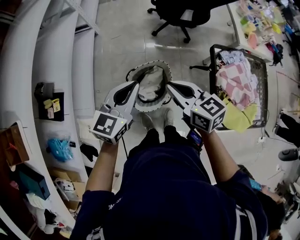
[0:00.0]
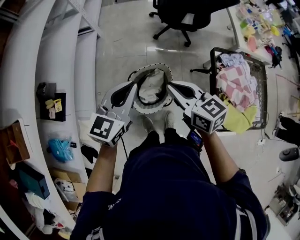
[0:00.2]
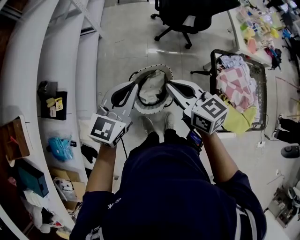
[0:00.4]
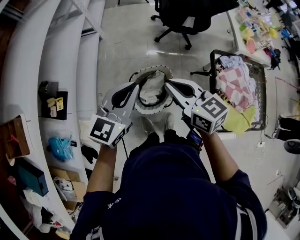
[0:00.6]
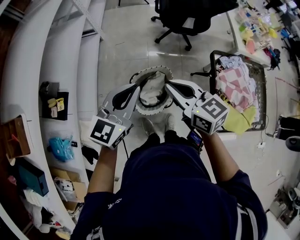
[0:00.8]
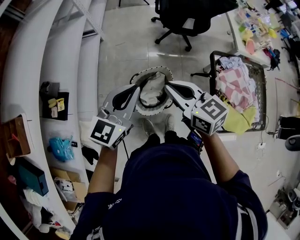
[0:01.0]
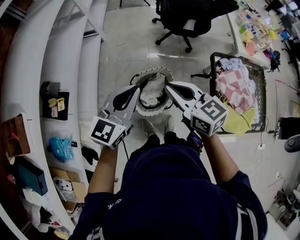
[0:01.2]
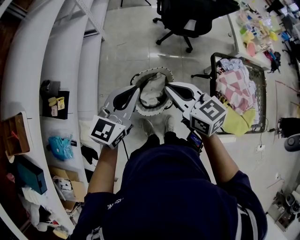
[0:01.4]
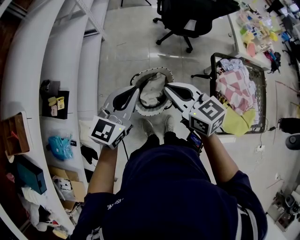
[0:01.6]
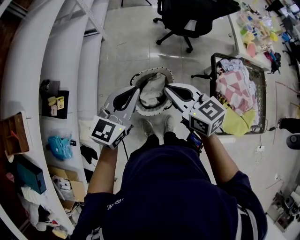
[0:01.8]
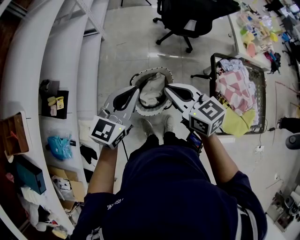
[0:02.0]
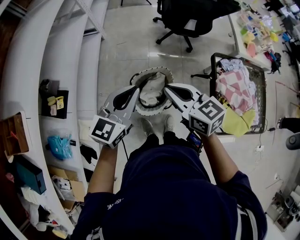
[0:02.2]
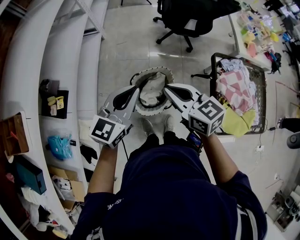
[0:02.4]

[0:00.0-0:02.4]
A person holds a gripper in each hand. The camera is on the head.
0:00.0 to 0:01.2: Both grippers travel together upward, approximately 5 cm.
0:01.2 to 0:02.4: There are only small adjustments of the grippers.

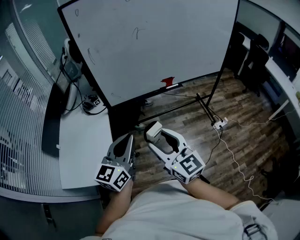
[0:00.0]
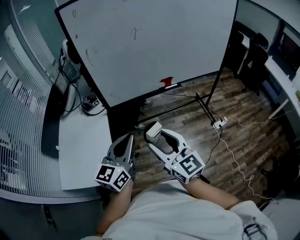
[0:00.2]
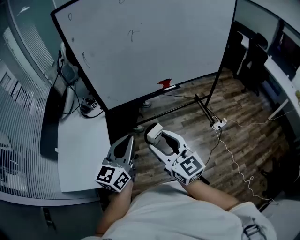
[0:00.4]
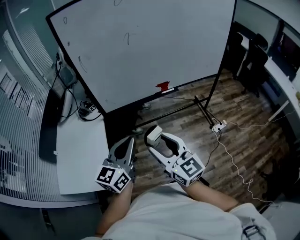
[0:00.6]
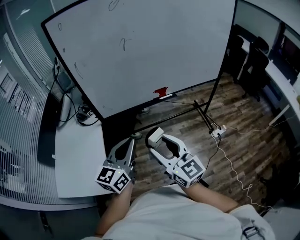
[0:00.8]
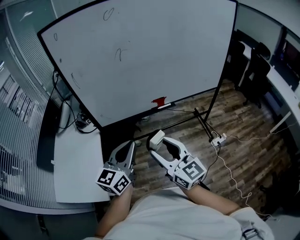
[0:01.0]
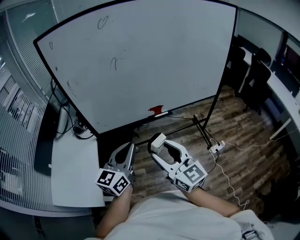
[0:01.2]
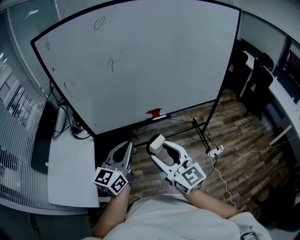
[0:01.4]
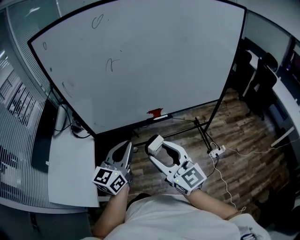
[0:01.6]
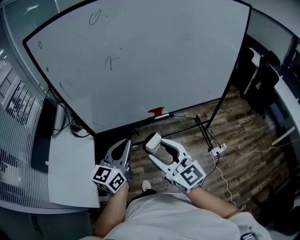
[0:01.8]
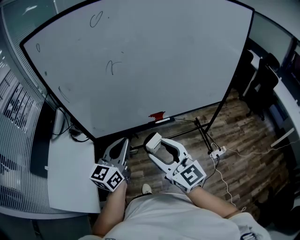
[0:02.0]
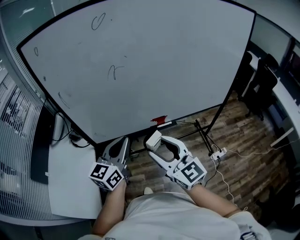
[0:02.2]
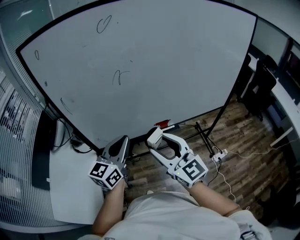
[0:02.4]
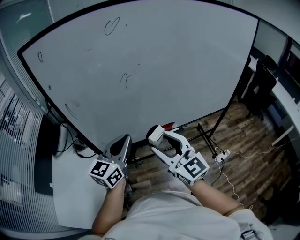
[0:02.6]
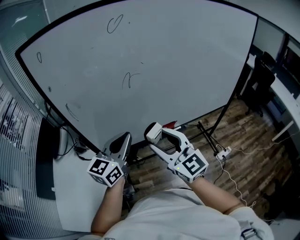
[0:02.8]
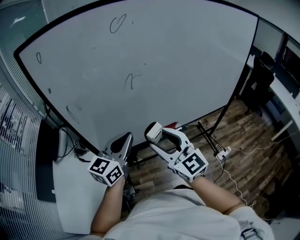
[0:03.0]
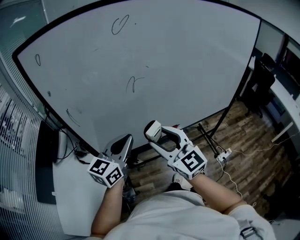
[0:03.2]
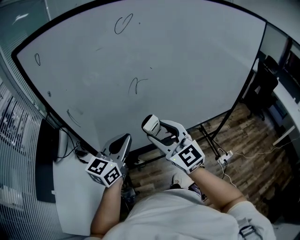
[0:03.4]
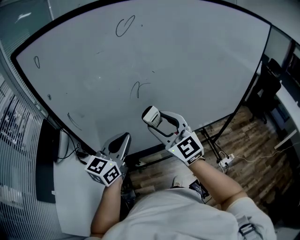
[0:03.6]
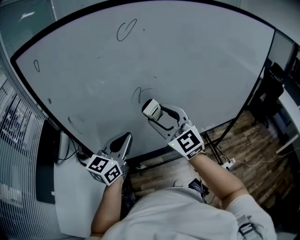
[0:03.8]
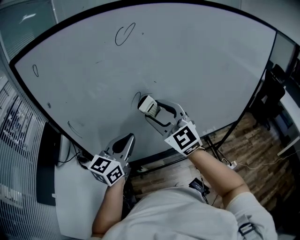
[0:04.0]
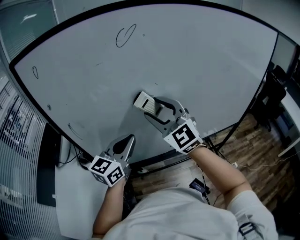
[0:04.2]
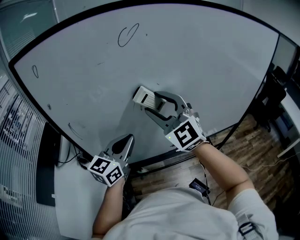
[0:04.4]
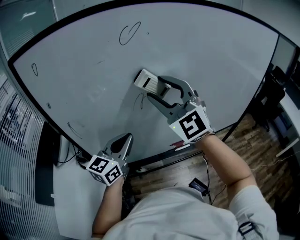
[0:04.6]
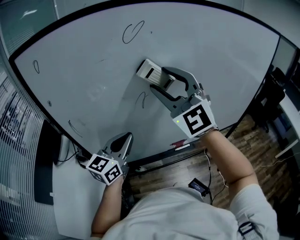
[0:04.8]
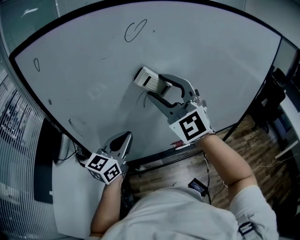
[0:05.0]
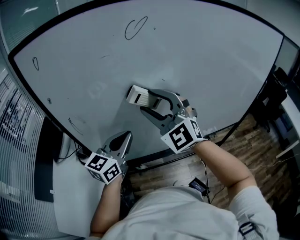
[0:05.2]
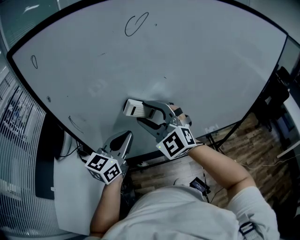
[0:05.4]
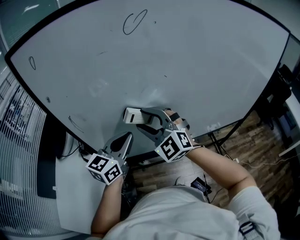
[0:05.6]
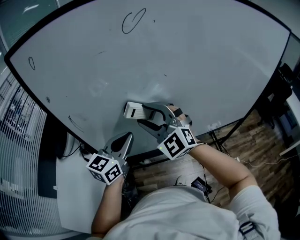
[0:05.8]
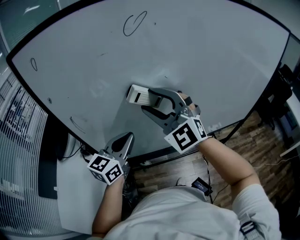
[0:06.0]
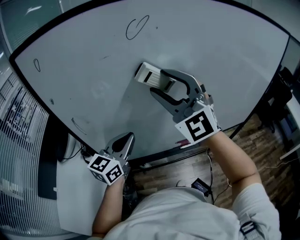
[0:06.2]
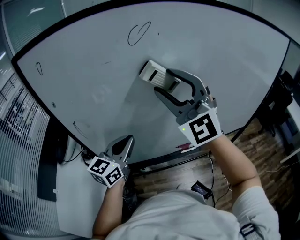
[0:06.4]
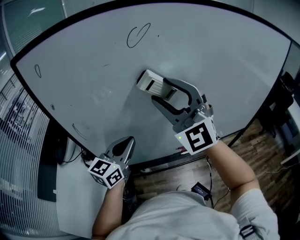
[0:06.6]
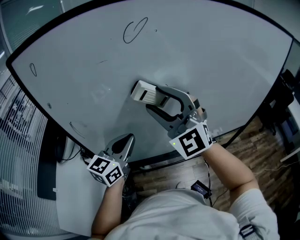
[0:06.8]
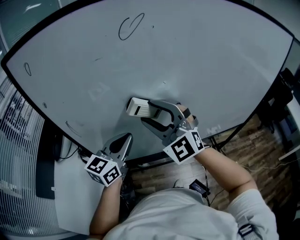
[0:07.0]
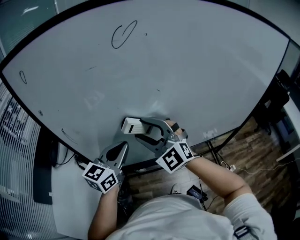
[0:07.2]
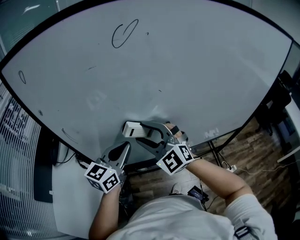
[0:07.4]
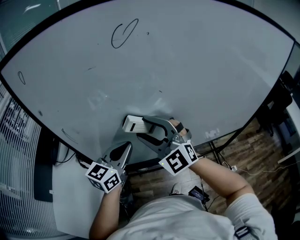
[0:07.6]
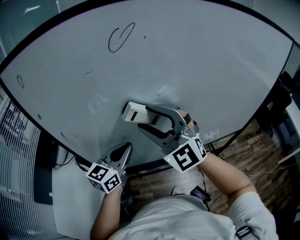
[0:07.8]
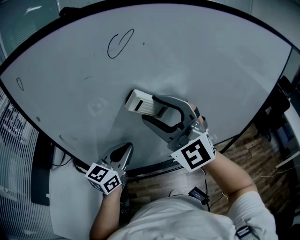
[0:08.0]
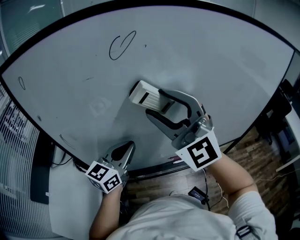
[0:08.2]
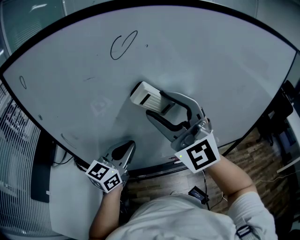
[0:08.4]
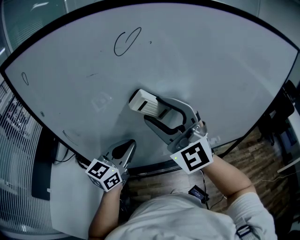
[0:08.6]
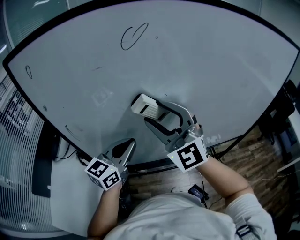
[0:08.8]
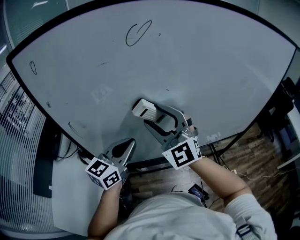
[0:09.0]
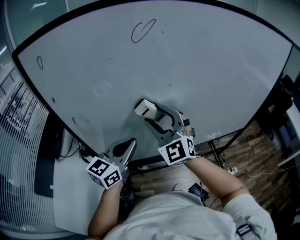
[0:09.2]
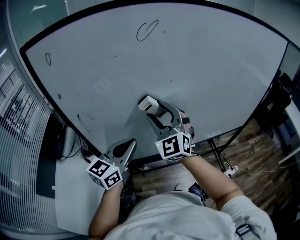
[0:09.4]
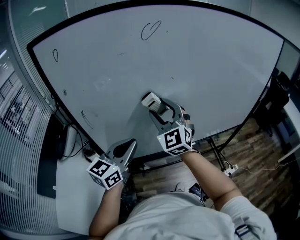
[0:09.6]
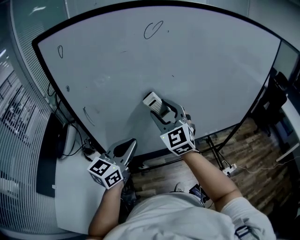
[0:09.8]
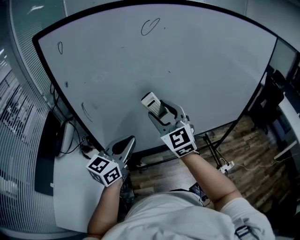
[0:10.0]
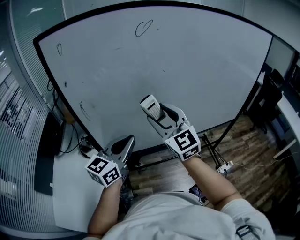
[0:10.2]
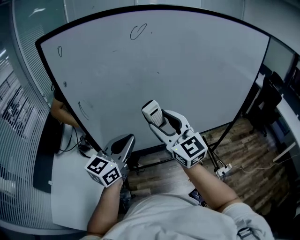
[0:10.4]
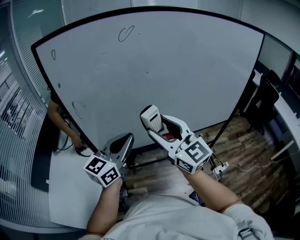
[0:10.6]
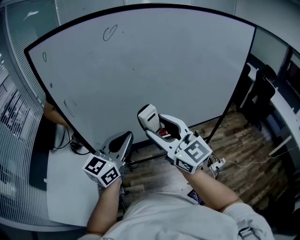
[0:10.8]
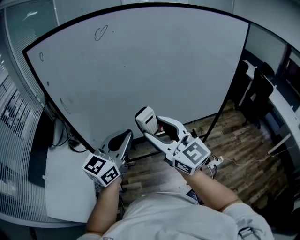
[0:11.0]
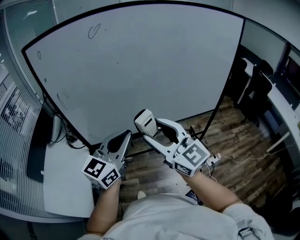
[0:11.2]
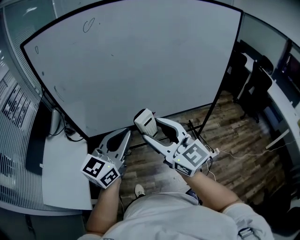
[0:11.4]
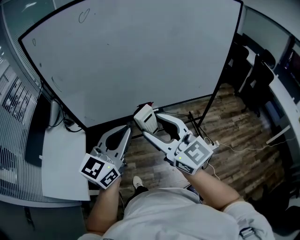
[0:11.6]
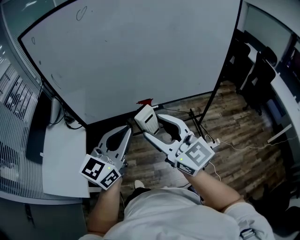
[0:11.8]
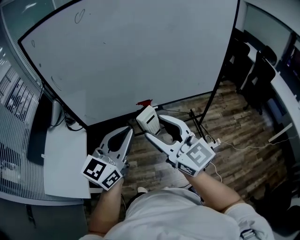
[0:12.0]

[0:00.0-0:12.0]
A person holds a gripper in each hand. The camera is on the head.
0:00.0 to 0:01.6: The grippers both shift to the right and forward by approximately 25 cm.
0:01.6 to 0:03.0: The two grippers go approximately 20 cm forward and to the left.
0:03.0 to 0:04.4: The left gripper shifts about 10 cm forward. Meanwhile the right gripper moves forward and upward, about 20 cm, and turns by roughly 30 degrees.
0:04.4 to 0:06.0: The right gripper goes up and down, roughly 20 cm each way, reversing 2 times.
0:06.0 to 0:07.6: The right gripper moves downward, some 5 cm.
0:07.6 to 0:09.0: The right gripper goes upward and returns, about 15 cm each way.
0:09.0 to 0:10.4: Both grippers travel together backward, about 15 cm. The right gripper turns by roughly 30 degrees.
0:10.4 to 0:12.0: The right gripper heads backward and to the right, covering roughly 30 cm. The left gripper is displaced to the right and backward by roughly 30 cm.

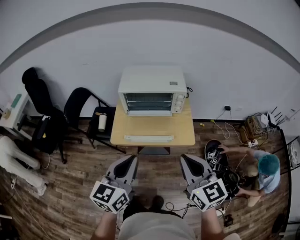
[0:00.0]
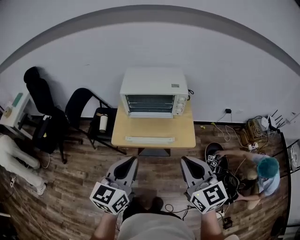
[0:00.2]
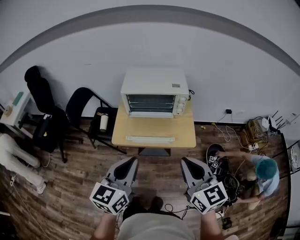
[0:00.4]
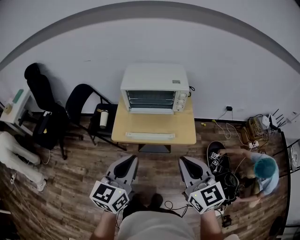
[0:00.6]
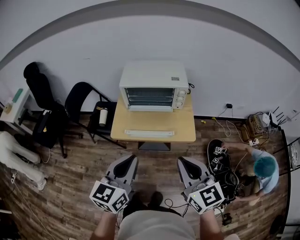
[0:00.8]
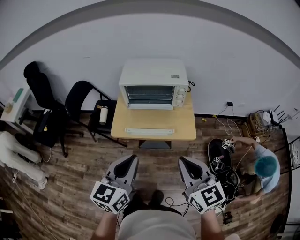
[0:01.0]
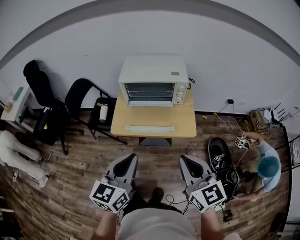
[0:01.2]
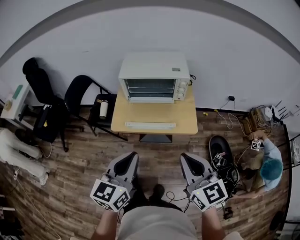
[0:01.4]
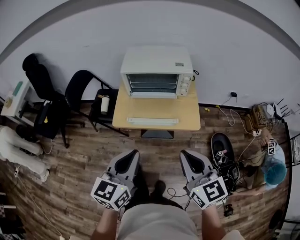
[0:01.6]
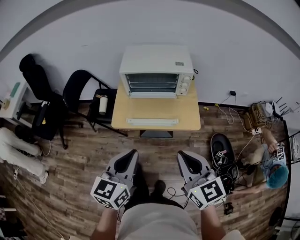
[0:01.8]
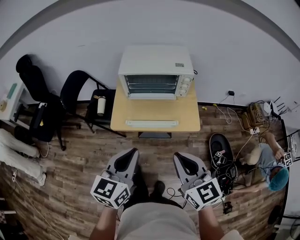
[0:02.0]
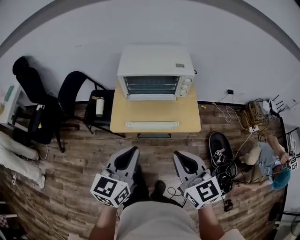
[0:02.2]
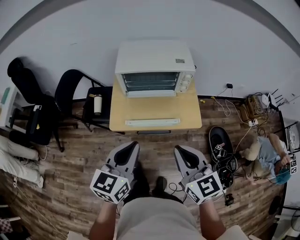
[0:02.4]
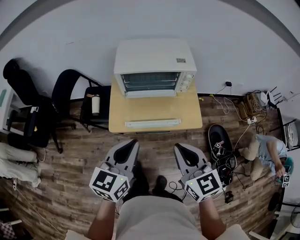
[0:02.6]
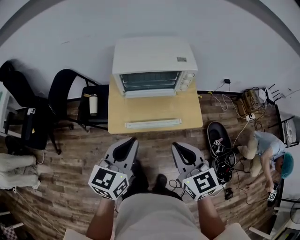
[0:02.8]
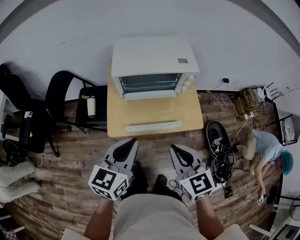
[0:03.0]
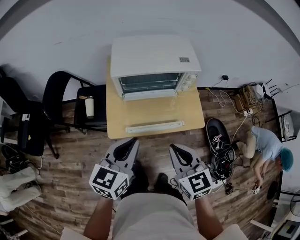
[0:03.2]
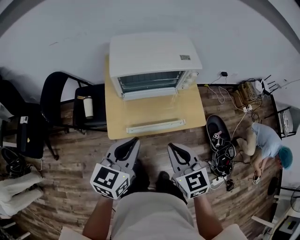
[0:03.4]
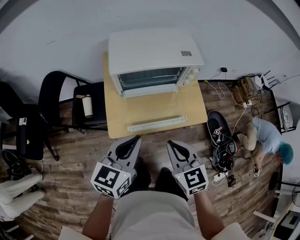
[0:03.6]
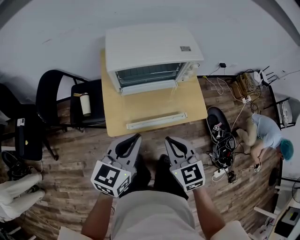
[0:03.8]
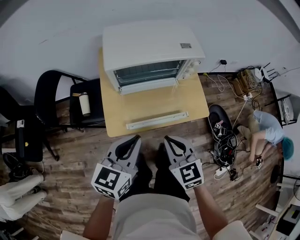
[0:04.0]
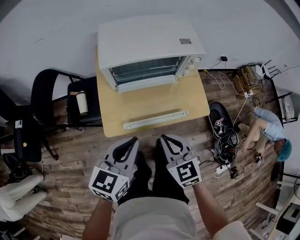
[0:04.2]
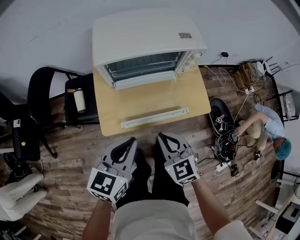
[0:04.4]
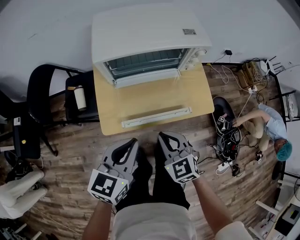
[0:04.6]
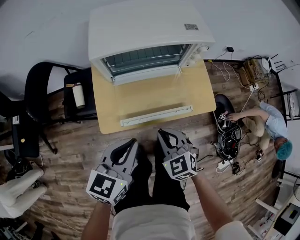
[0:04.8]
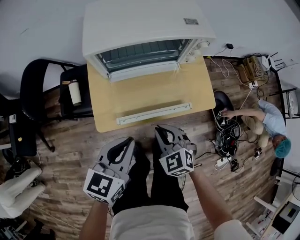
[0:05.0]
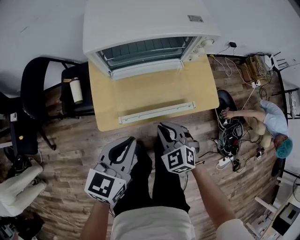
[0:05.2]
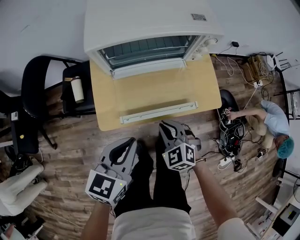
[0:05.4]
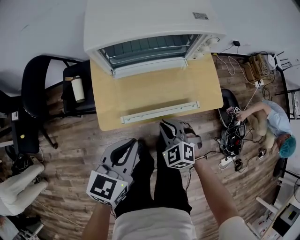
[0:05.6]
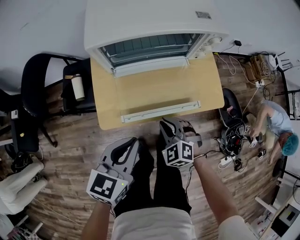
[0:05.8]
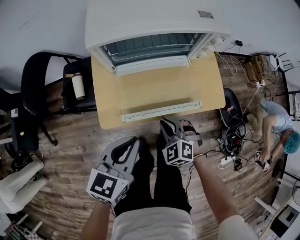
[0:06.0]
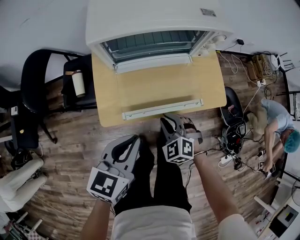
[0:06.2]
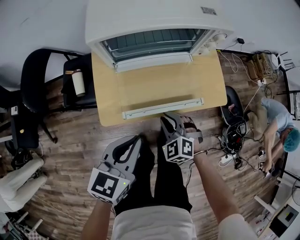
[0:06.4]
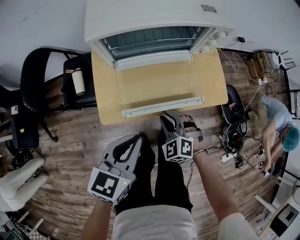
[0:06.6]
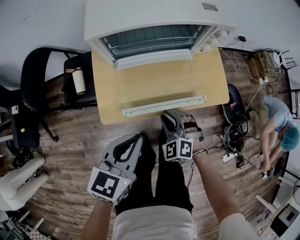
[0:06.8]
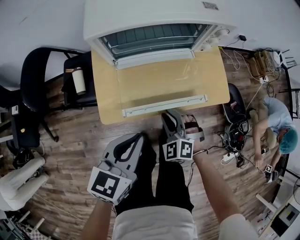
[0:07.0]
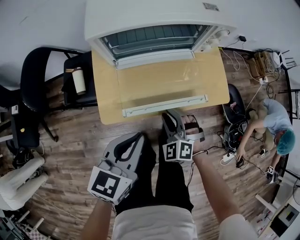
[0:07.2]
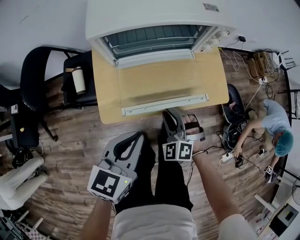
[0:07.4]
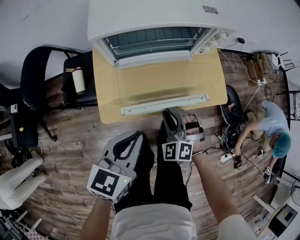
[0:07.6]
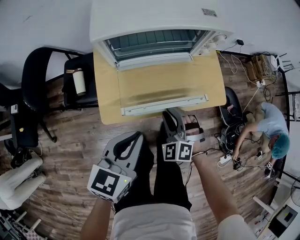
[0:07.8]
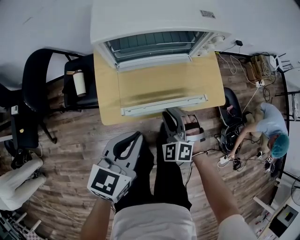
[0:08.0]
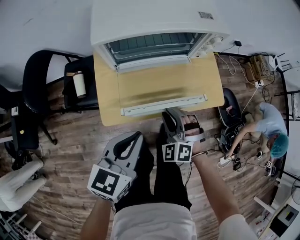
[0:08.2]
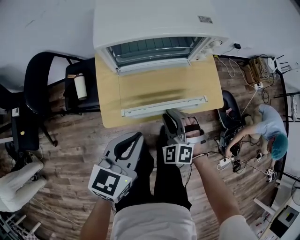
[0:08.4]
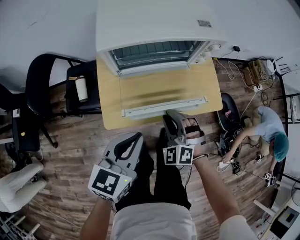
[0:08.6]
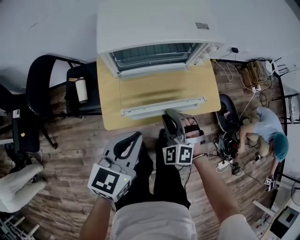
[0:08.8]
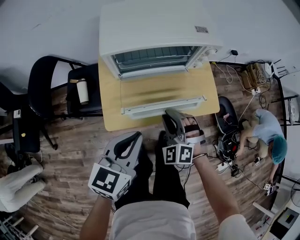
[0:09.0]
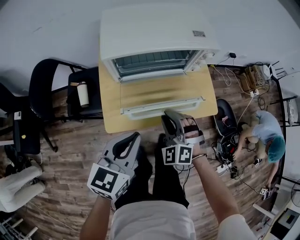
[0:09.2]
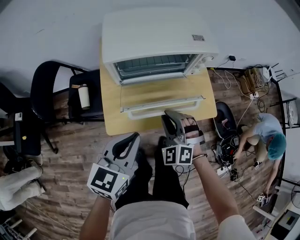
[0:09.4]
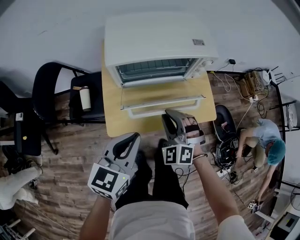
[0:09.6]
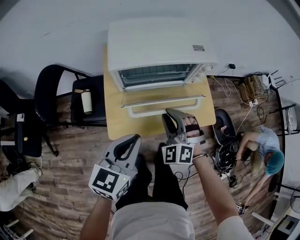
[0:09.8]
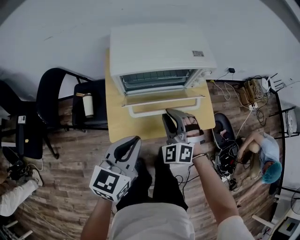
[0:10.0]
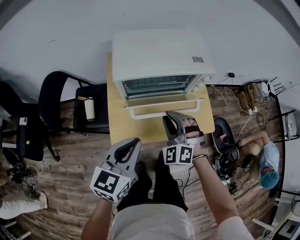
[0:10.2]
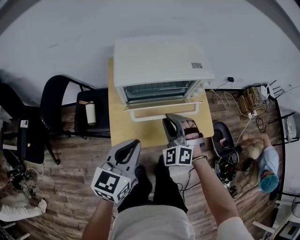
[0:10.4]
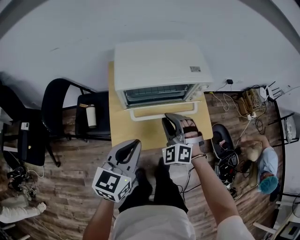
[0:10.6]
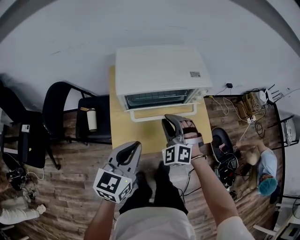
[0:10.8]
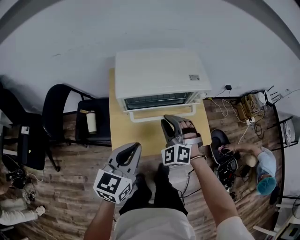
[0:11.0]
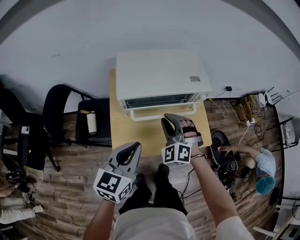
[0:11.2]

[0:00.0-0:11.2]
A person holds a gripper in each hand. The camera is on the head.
0:00.0 to 0:01.6: The grippers stay close to where they were, moving slightly.
0:01.6 to 0:03.2: The right gripper shifts roughly 20 cm forward, to the left and downward, while the left gripper heads forward and to the left, covering approximately 20 cm.
0:03.2 to 0:04.8: The right gripper travels downward by roughly 20 cm, and changes its angle by some 20 degrees; the left gripper goes about 10 cm downward.
0:04.8 to 0:06.4: The right gripper goes some 10 cm downward, and rotates roughly 20 degrees.
0:06.4 to 0:08.0: The grippers make only small movements.
0:08.0 to 0:09.6: The left gripper goes approximately 5 cm upward. Meanwhile the right gripper goes roughly 10 cm upward.
0:09.6 to 0:11.2: The right gripper travels forward and upward by about 10 cm; the left gripper shifts approximately 5 cm upward.
